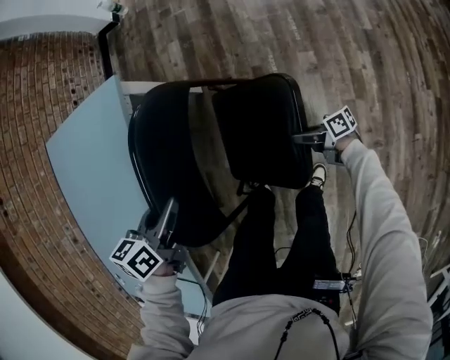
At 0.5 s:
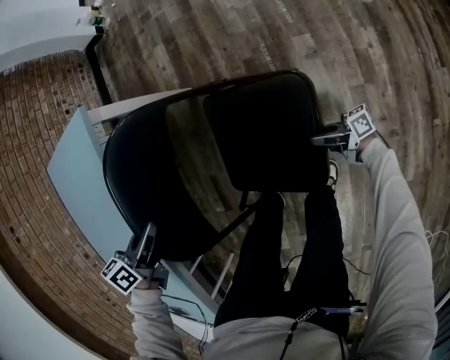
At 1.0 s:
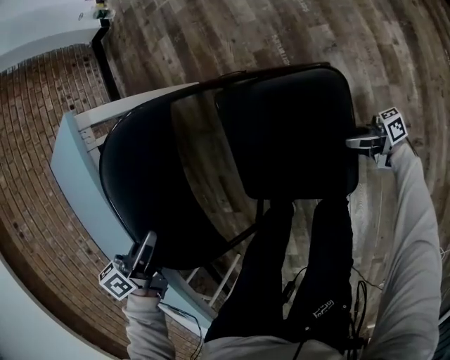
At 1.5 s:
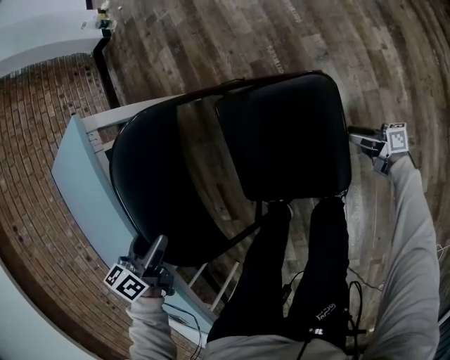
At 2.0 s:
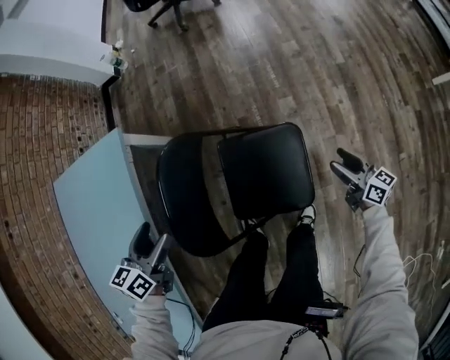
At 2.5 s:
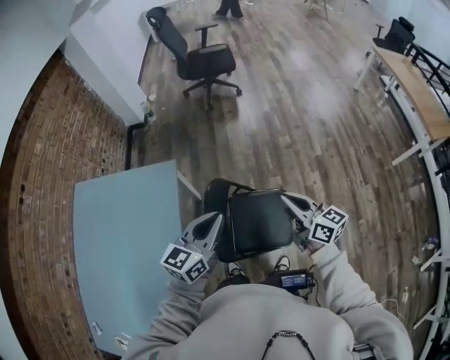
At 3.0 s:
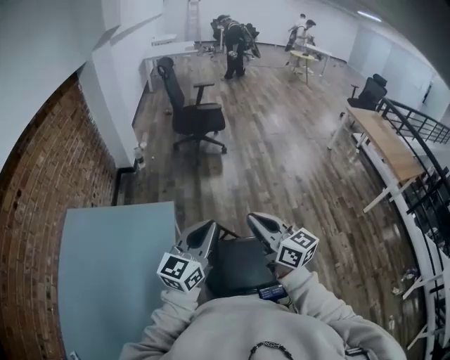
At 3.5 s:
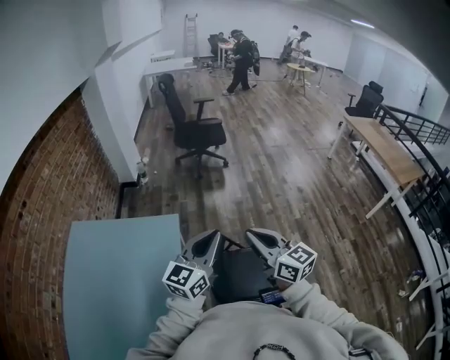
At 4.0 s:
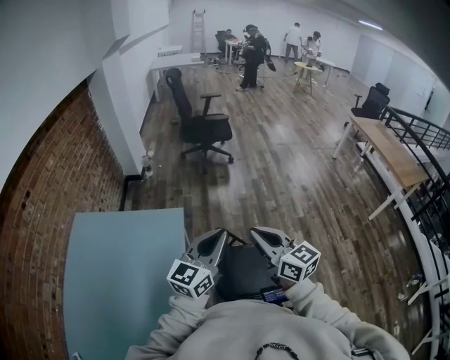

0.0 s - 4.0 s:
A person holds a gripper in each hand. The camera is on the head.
0.0 s - 2.0 s: The right gripper shifts approximately 25 cm to the right and upward, rotates approximately 60 degrees, and opens up. The left gripper goes downward and returns, roughly 15 cm each way, and opens up.
2.0 s - 4.0 s: The left gripper shifts some 40 cm upward, tips its fingers upward by about 40 degrees, and closes up. Meanwhile the right gripper travels upward and to the left by some 70 cm, turns by some 30 degrees, and closes up.

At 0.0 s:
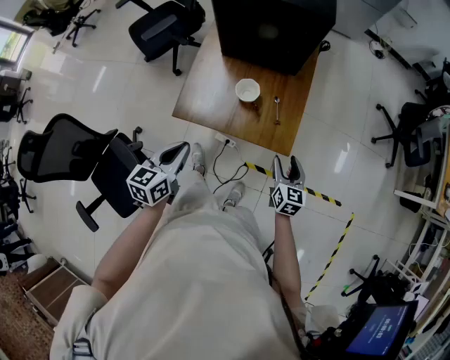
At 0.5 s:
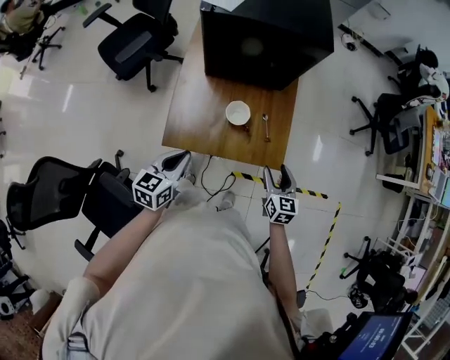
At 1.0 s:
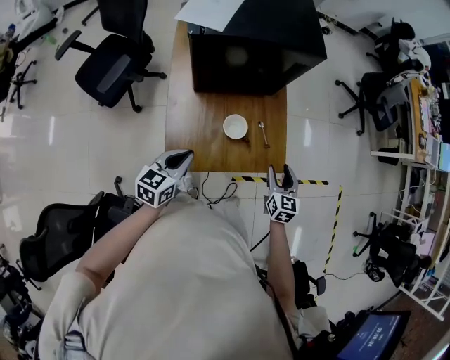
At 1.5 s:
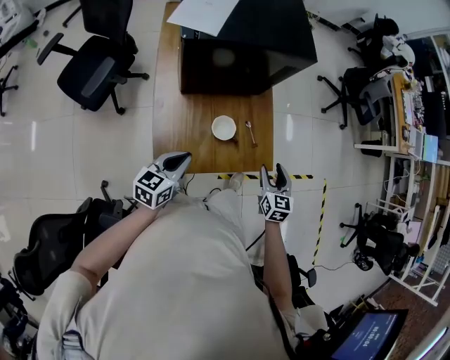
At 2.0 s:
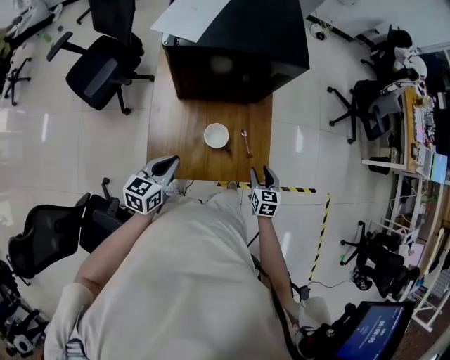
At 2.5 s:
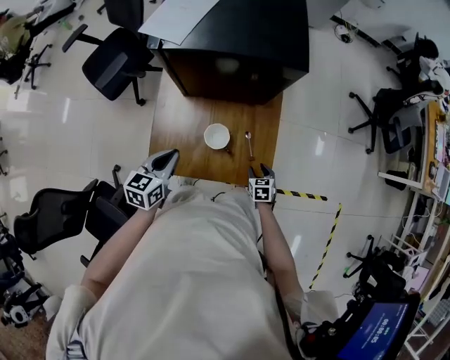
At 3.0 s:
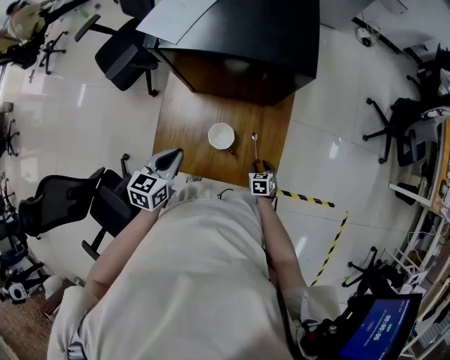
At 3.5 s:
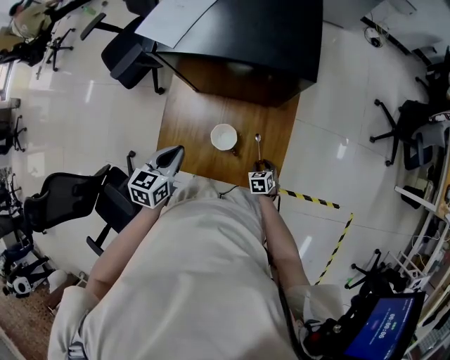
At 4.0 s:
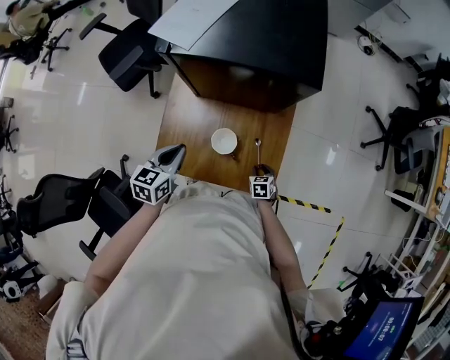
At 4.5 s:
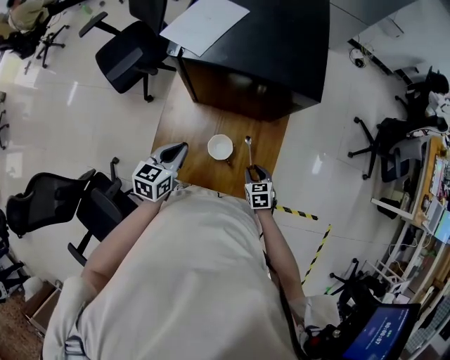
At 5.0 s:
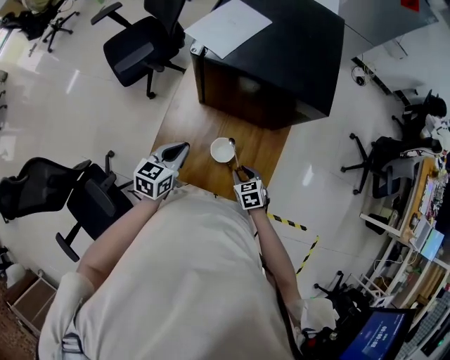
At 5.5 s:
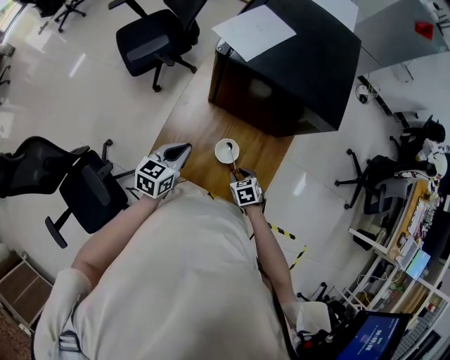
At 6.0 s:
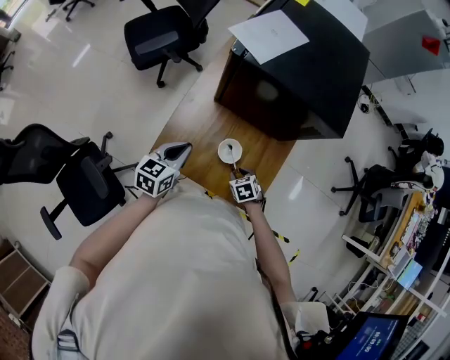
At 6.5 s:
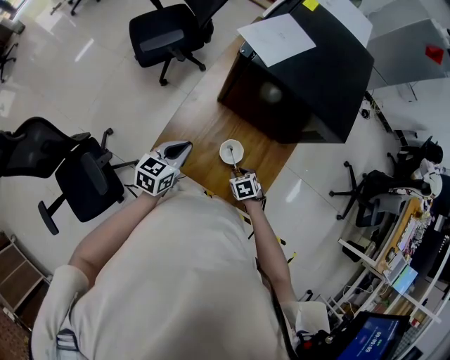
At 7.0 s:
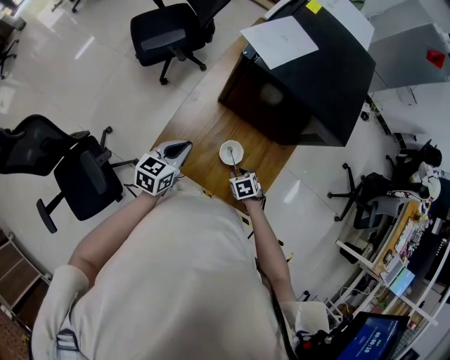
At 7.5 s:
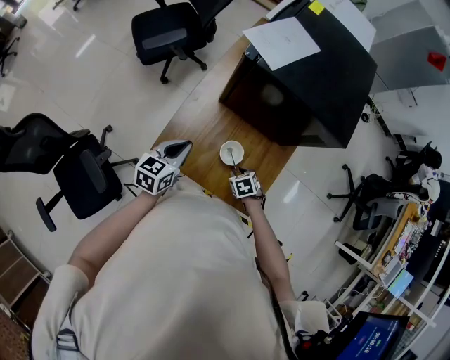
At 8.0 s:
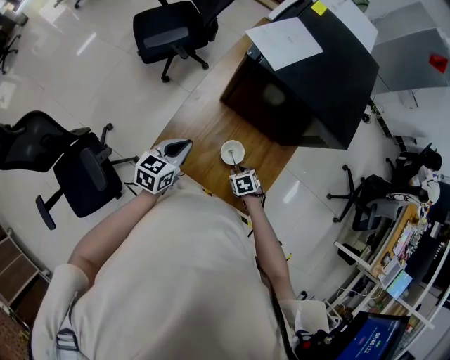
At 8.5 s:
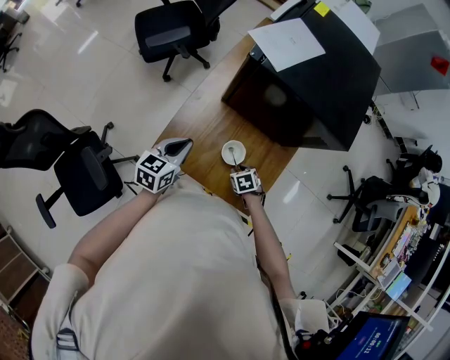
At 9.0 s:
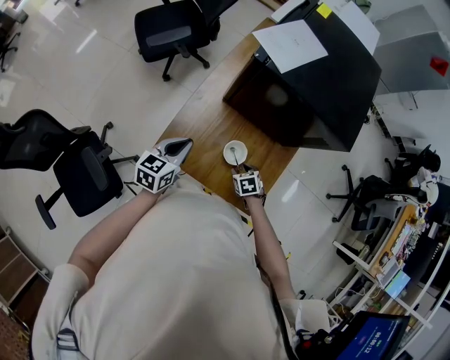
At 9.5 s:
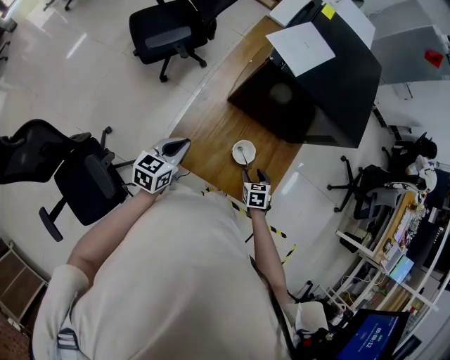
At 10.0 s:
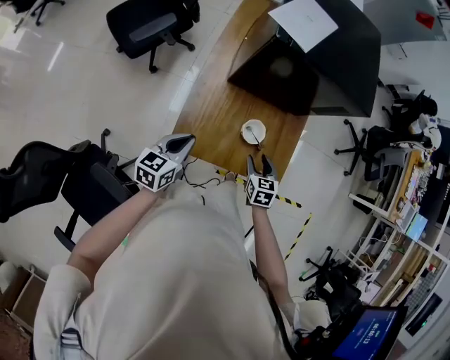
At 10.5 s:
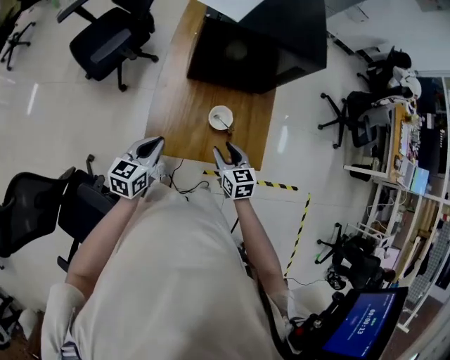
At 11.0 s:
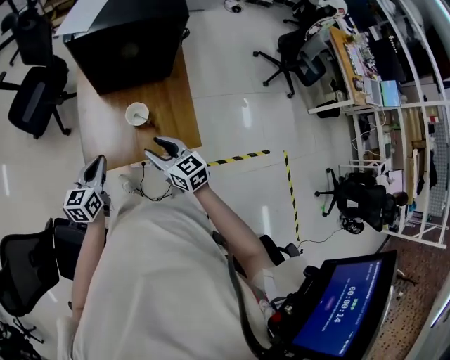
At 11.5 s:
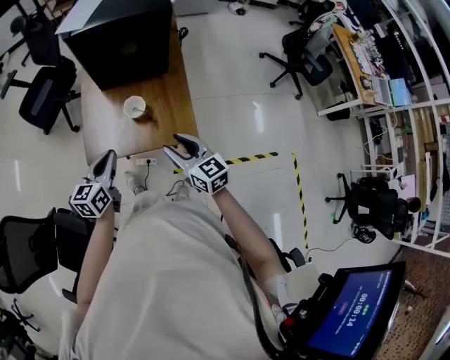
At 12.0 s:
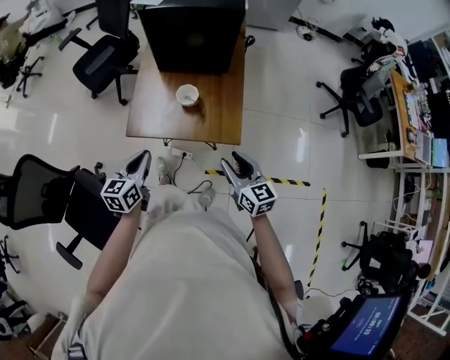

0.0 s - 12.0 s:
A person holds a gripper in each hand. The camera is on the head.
0.0 s - 2.0 s: The right gripper shifts by approximately 10 cm. The left gripper ends up about 20 cm from where it was.
2.0 s - 4.0 s: The left gripper is displaced forward by roughly 5 cm. The right gripper heads downward, covering some 15 cm, and changes its angle by approximately 30 degrees.
4.0 s - 6.0 s: The right gripper goes roughly 15 cm to the left and upward, and changes its angle by roughly 30 degrees.
6.0 s - 8.0 s: The grippers move only a little.
8.0 s - 10.0 s: The right gripper goes about 10 cm upward, and swivels approximately 40 degrees. The left gripper moves approximately 10 cm.
10.0 s - 12.0 s: The right gripper is displaced backward, to the right and upward by some 30 cm, and points its fingers about 30 degrees further upward, while the left gripper moves backward and to the right, some 25 cm.

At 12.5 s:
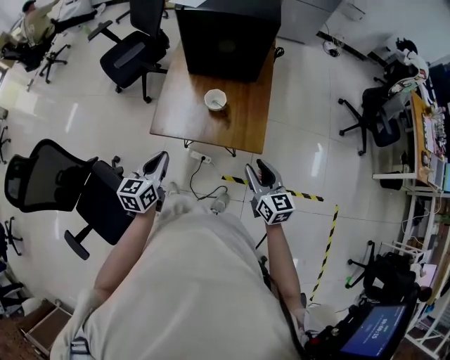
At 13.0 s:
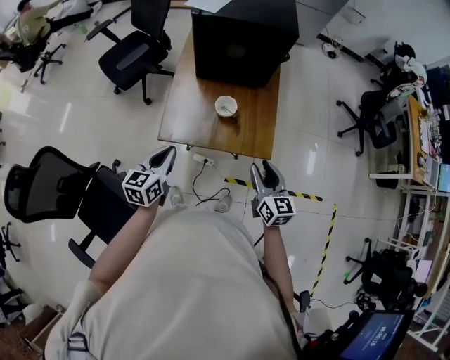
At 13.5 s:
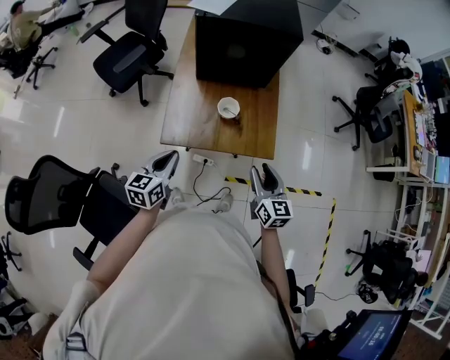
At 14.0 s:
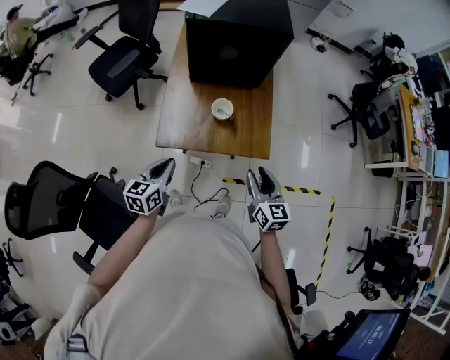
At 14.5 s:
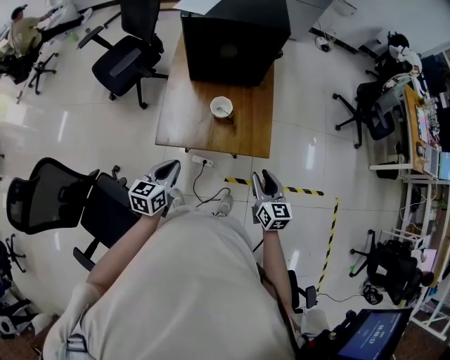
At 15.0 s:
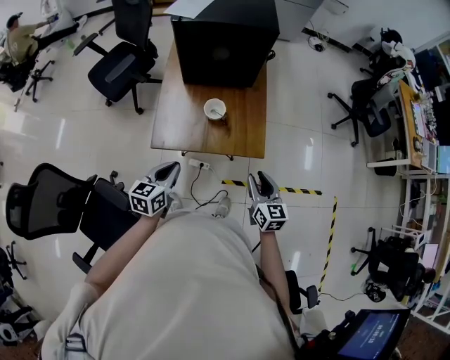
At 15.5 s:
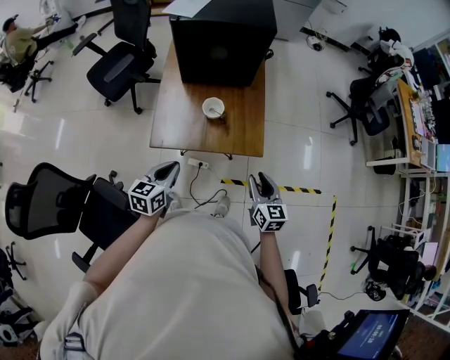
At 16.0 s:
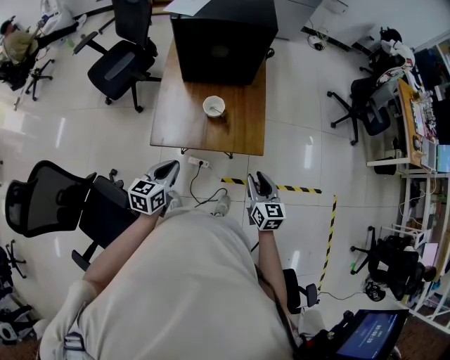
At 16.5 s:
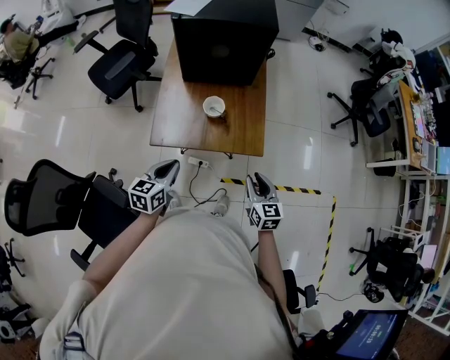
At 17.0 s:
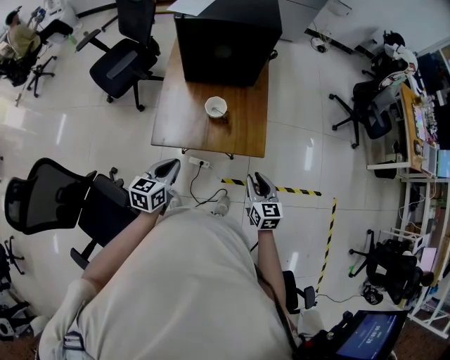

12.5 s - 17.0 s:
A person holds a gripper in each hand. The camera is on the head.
14.5 s - 17.0 s: There are only small adjustments of the grippers.

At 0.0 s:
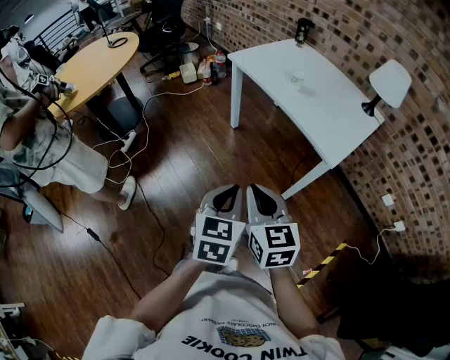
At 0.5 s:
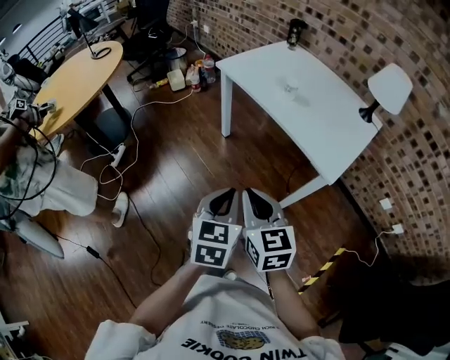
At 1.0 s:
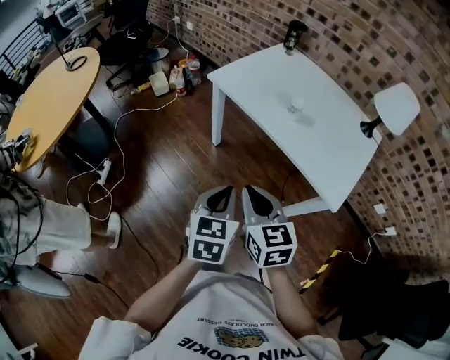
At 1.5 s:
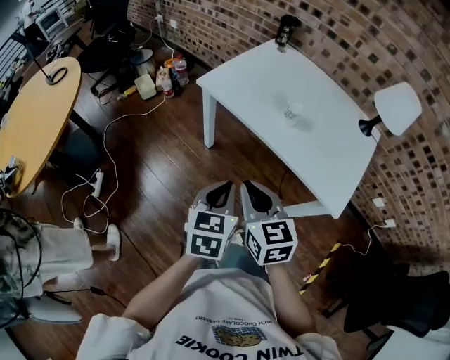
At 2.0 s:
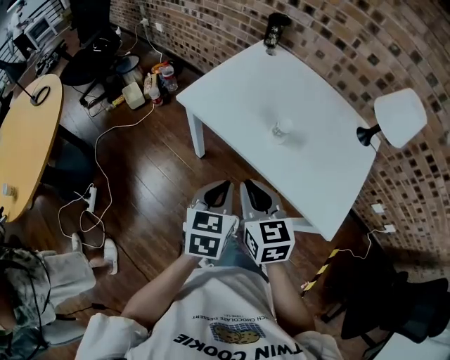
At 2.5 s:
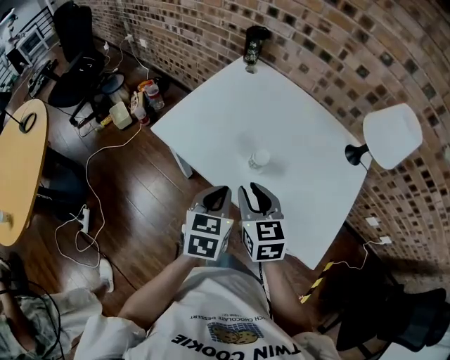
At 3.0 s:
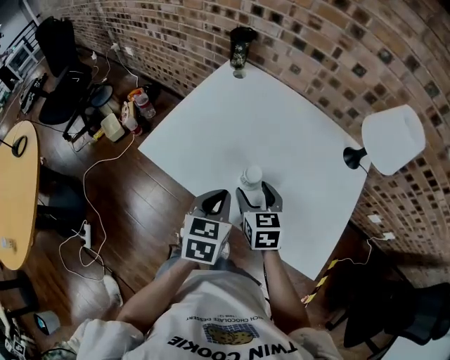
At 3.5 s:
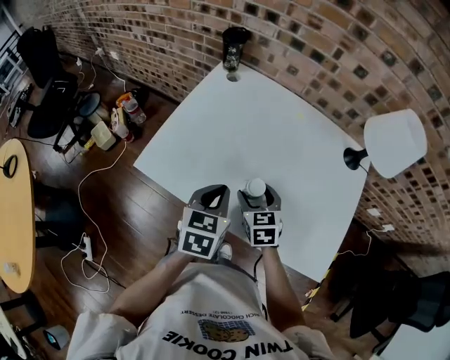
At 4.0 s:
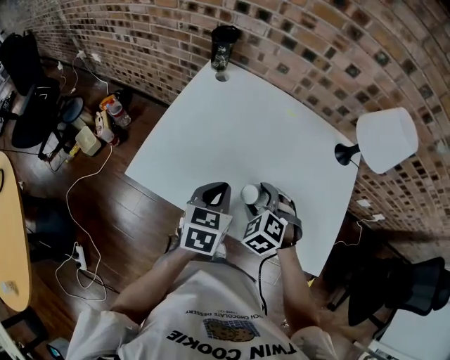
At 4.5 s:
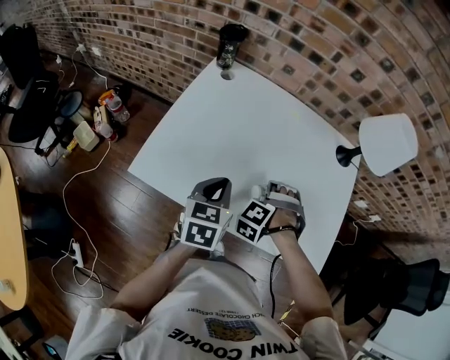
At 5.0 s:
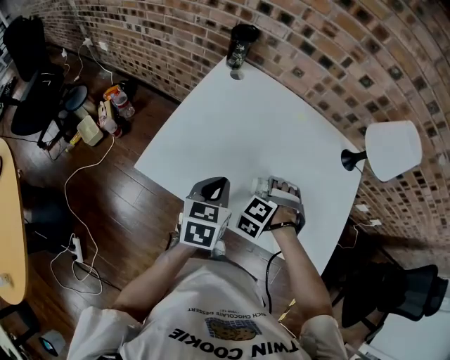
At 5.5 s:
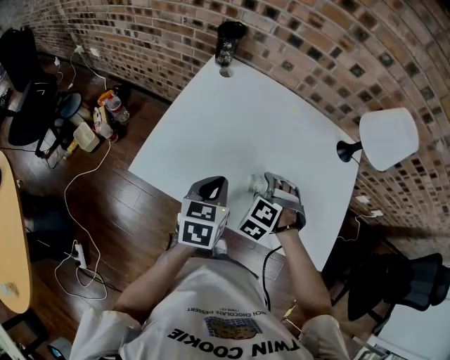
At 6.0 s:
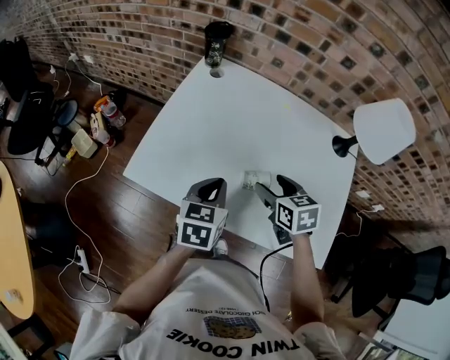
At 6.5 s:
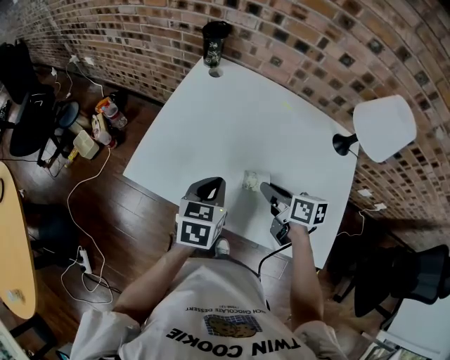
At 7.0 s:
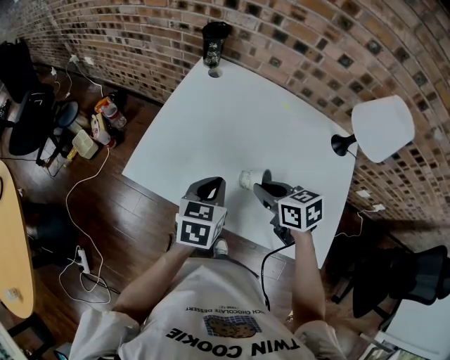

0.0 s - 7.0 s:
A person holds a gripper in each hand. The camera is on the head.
0.0 s - 2.0 s: Both grippers are carried forward, approximately 40 cm.
2.0 s - 3.5 s: The left gripper shifts some 25 cm forward. The right gripper travels forward, downward and to the right by some 30 cm, turns by some 20 degrees, and opens its fingers.
3.5 s - 5.0 s: The right gripper rolls counterclockwise, seen from behind, by roughly 70 degrees. The left gripper shifts by roughly 5 cm.
5.0 s - 7.0 s: The right gripper heads upward, covering roughly 10 cm, rotates about 90 degrees, and closes its fingers.
